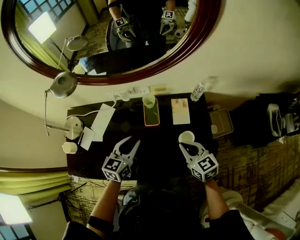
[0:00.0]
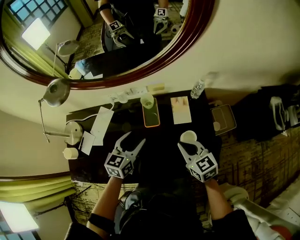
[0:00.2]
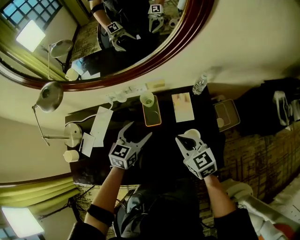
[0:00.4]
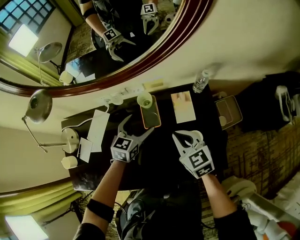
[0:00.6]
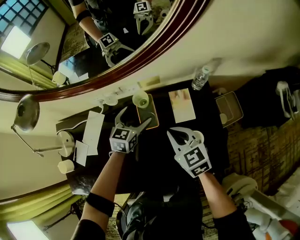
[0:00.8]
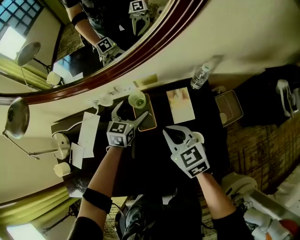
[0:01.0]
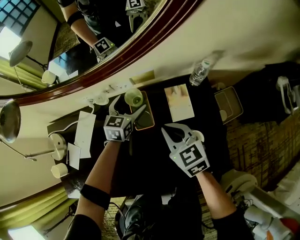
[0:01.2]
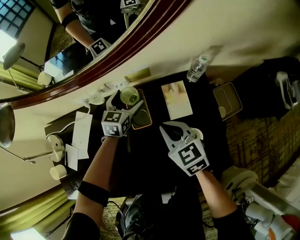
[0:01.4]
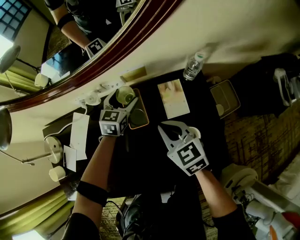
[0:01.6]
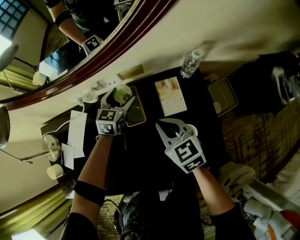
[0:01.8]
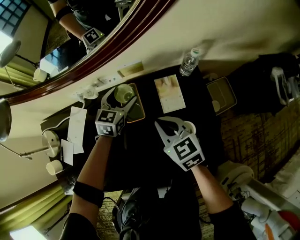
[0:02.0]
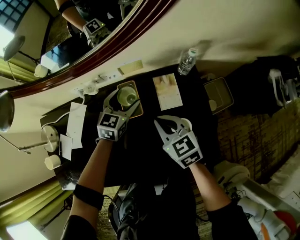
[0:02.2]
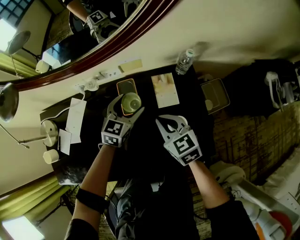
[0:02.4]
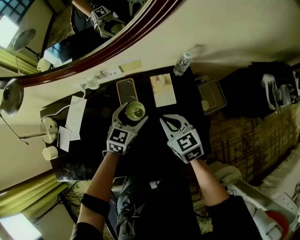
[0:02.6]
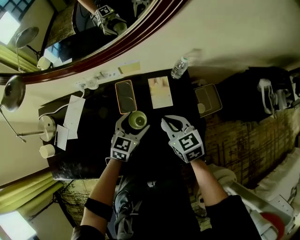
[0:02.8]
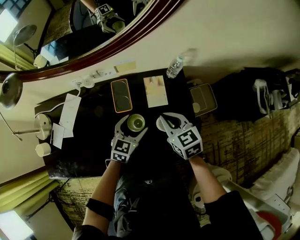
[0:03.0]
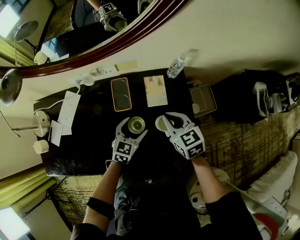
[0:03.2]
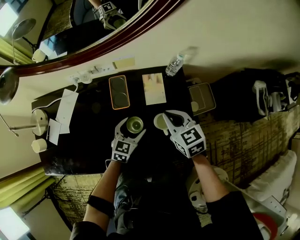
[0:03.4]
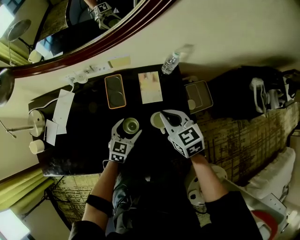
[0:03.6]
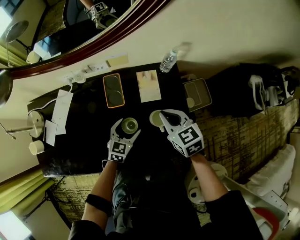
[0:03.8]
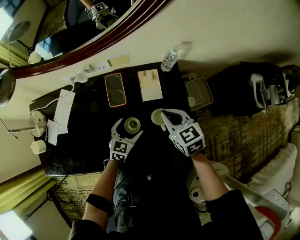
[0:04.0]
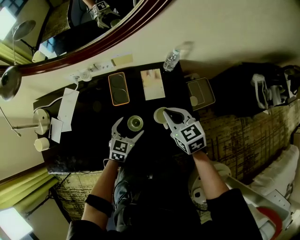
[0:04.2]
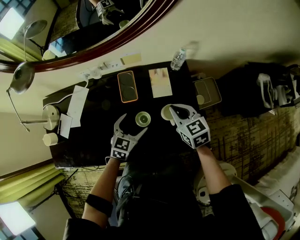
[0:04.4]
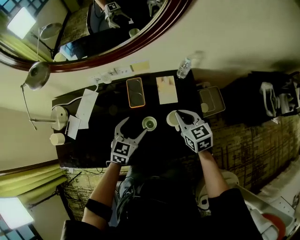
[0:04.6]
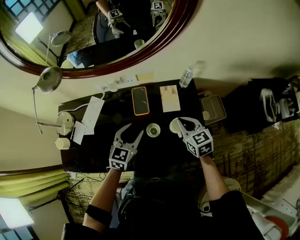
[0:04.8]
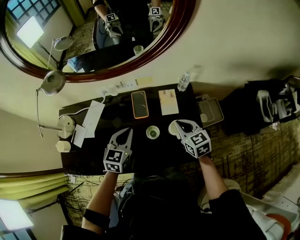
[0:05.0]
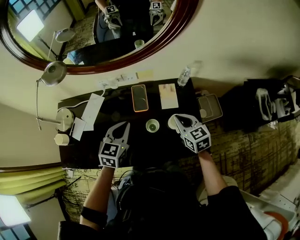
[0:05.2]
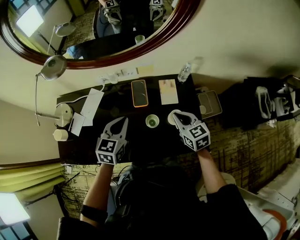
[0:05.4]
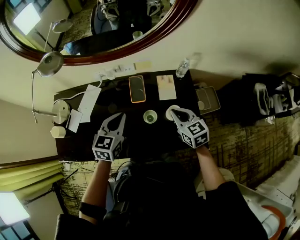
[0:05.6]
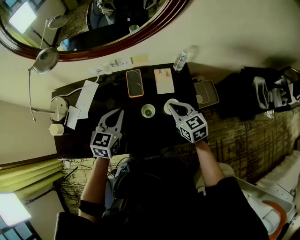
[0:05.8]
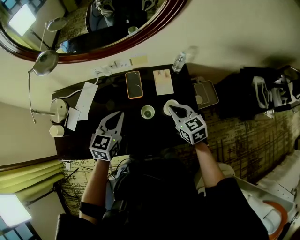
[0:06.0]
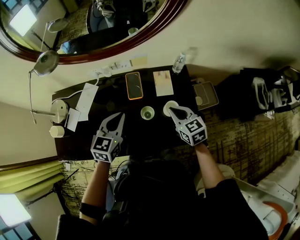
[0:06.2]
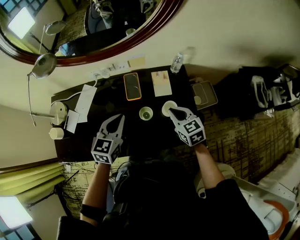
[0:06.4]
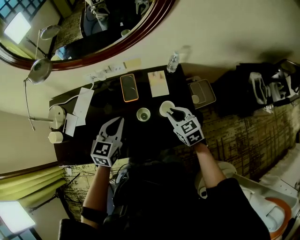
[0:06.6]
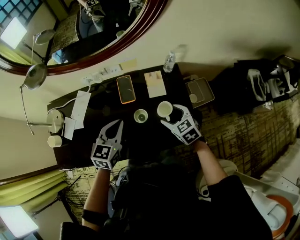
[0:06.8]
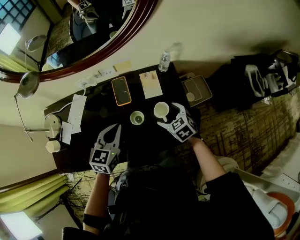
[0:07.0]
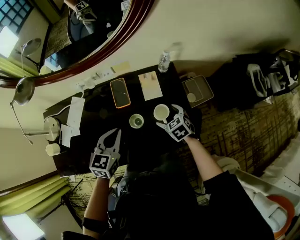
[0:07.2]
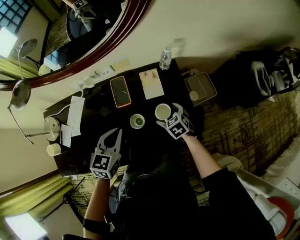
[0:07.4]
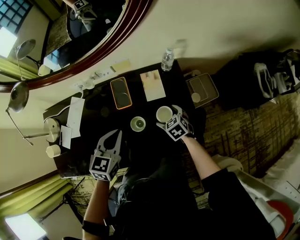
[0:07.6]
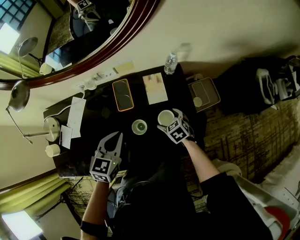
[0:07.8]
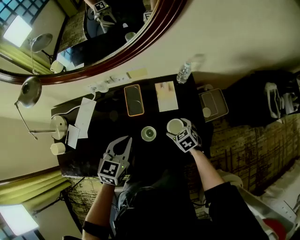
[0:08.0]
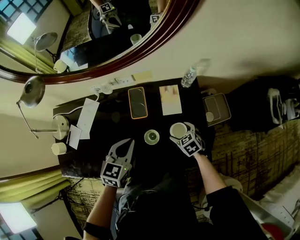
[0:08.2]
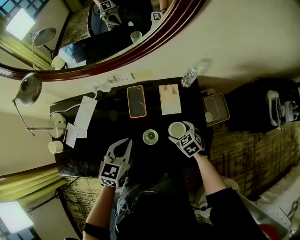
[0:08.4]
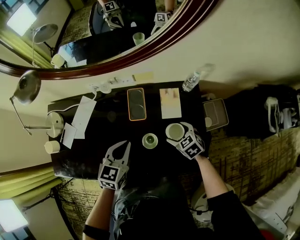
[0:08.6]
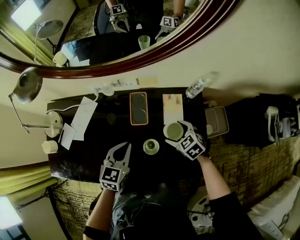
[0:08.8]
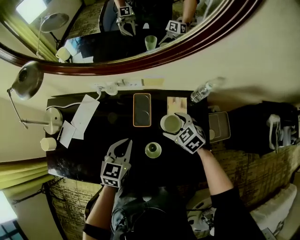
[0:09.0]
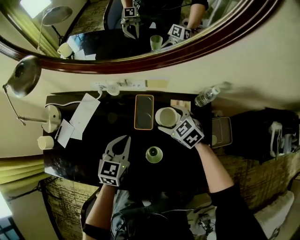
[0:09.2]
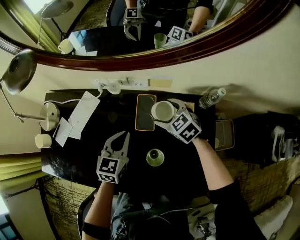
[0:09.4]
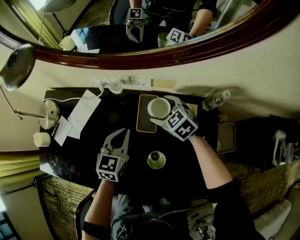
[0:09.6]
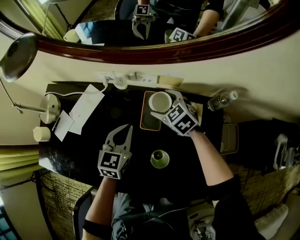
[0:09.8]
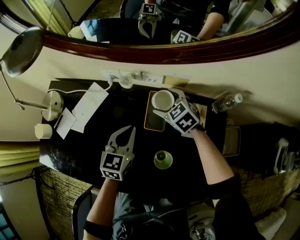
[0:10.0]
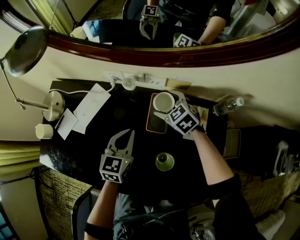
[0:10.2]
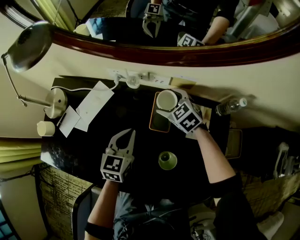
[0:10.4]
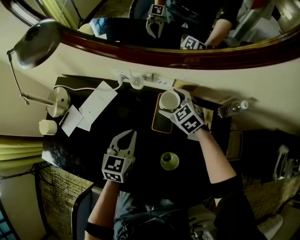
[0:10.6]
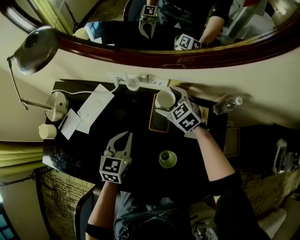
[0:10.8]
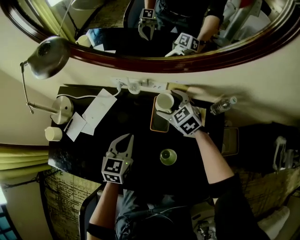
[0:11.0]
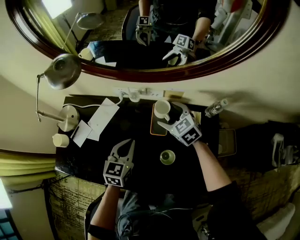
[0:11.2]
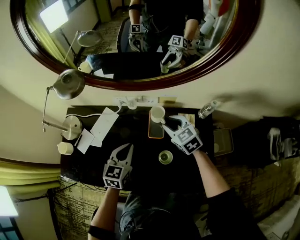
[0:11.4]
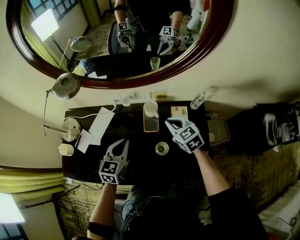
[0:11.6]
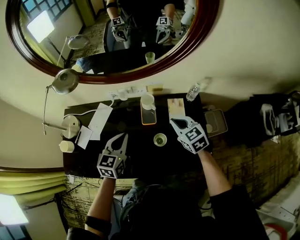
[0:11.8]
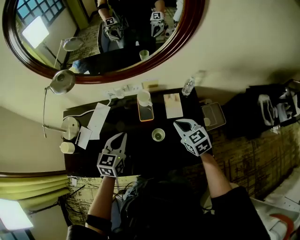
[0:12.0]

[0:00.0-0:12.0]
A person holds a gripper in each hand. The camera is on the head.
0:00.0 to 0:01.6: The right gripper shifts some 15 cm forward and downward, while the left gripper goes some 35 cm forward and downward, and opens its fingers.
0:01.6 to 0:03.0: The left gripper shifts about 25 cm backward and to the right, while the right gripper shifts some 10 cm to the right.
0:03.0 to 0:04.4: The left gripper shifts by approximately 5 cm.
0:04.4 to 0:06.0: The left gripper is displaced upward and to the left by roughly 20 cm, and closes its fingers. The right gripper changes place by roughly 5 cm.
0:06.0 to 0:07.6: The left gripper goes some 5 cm to the right; the right gripper is displaced downward by approximately 20 cm, swivels some 20 degrees, and opens up.
0:07.6 to 0:09.0: The right gripper travels forward, to the left and upward by some 15 cm, and changes its angle by roughly 30 degrees; the left gripper is displaced downward and forward by roughly 10 cm.
0:09.0 to 0:10.4: The left gripper moves forward, approximately 5 cm, while the right gripper goes roughly 20 cm forward and to the left.
0:10.4 to 0:12.0: The left gripper moves upward and backward, about 20 cm. Meanwhile the right gripper goes roughly 30 cm backward and upward, rotates roughly 30 degrees, and closes its fingers.

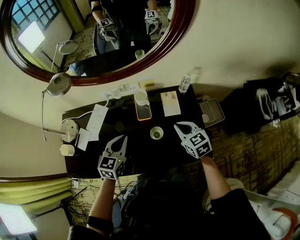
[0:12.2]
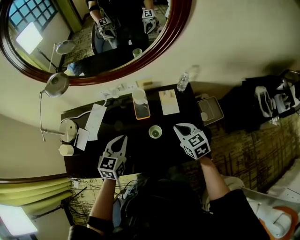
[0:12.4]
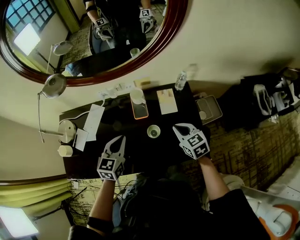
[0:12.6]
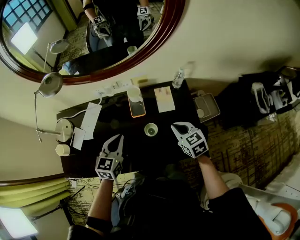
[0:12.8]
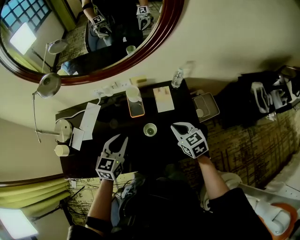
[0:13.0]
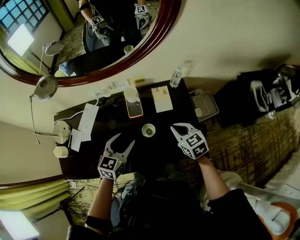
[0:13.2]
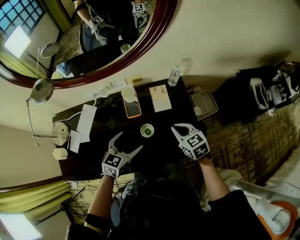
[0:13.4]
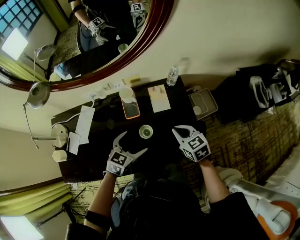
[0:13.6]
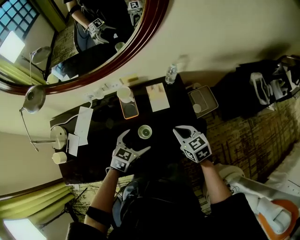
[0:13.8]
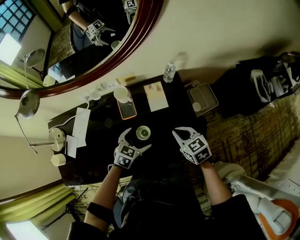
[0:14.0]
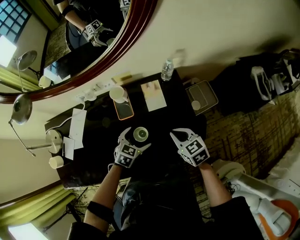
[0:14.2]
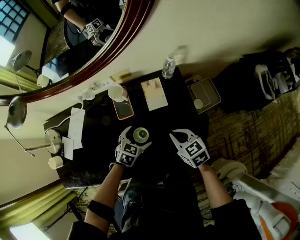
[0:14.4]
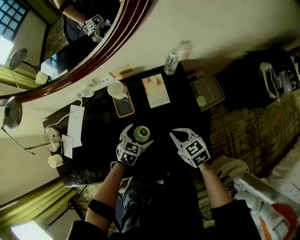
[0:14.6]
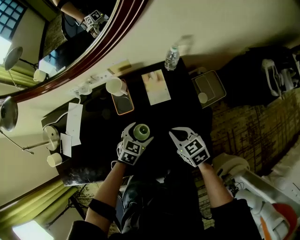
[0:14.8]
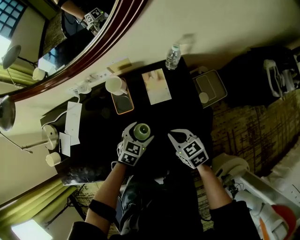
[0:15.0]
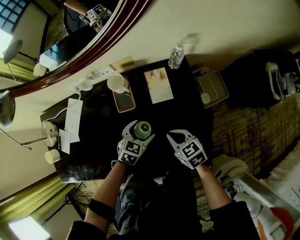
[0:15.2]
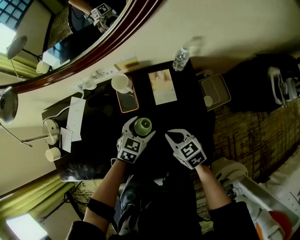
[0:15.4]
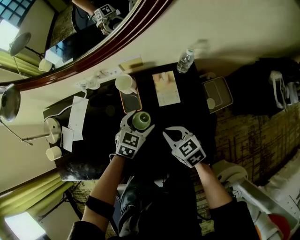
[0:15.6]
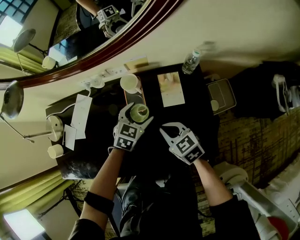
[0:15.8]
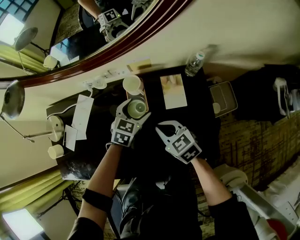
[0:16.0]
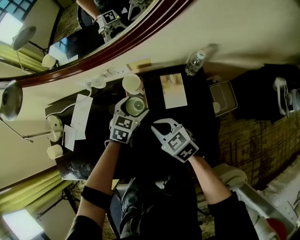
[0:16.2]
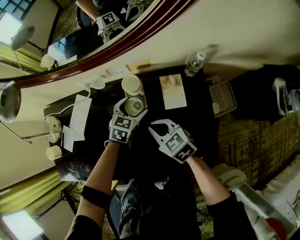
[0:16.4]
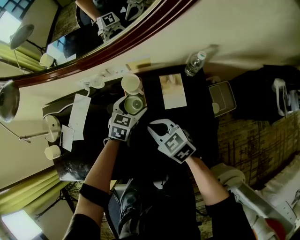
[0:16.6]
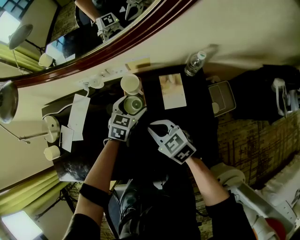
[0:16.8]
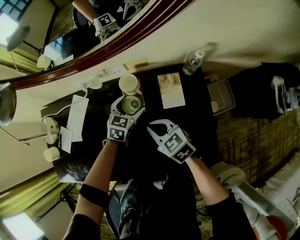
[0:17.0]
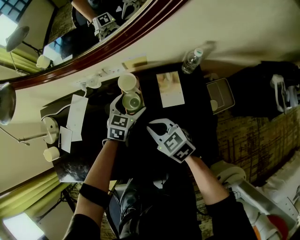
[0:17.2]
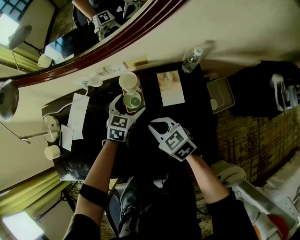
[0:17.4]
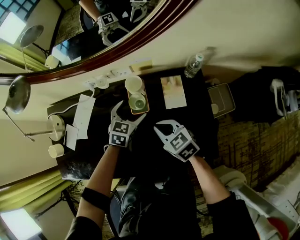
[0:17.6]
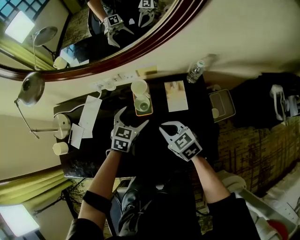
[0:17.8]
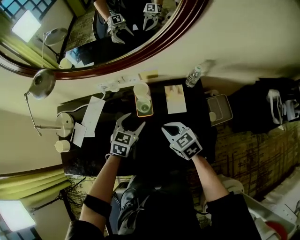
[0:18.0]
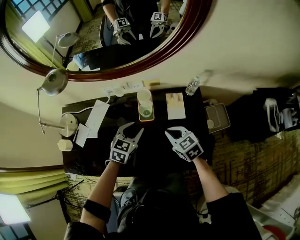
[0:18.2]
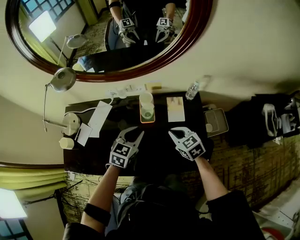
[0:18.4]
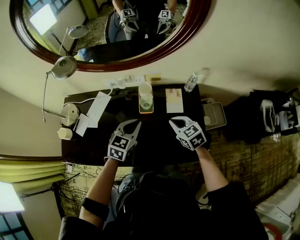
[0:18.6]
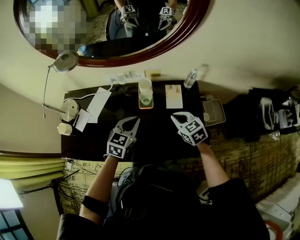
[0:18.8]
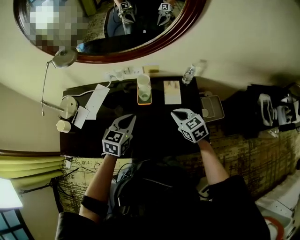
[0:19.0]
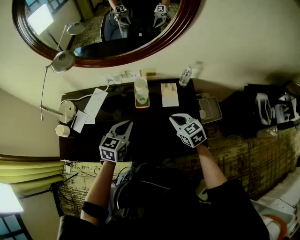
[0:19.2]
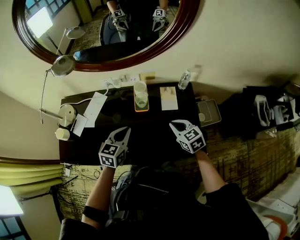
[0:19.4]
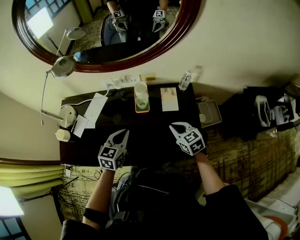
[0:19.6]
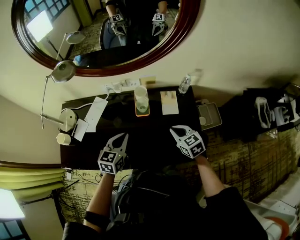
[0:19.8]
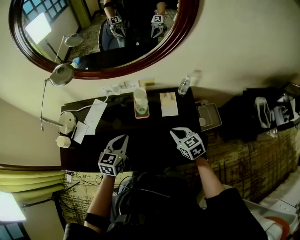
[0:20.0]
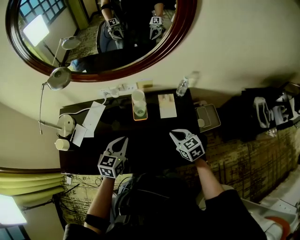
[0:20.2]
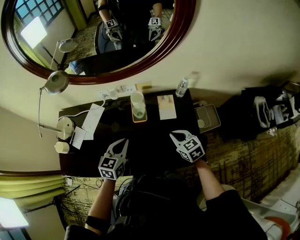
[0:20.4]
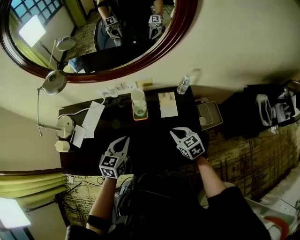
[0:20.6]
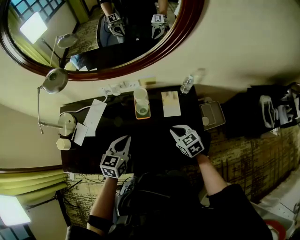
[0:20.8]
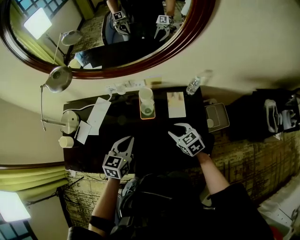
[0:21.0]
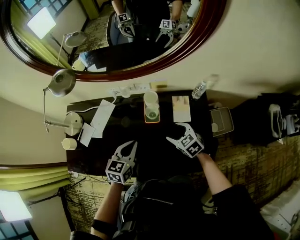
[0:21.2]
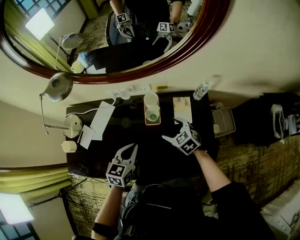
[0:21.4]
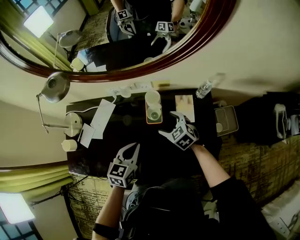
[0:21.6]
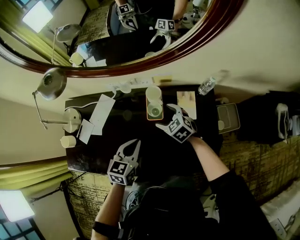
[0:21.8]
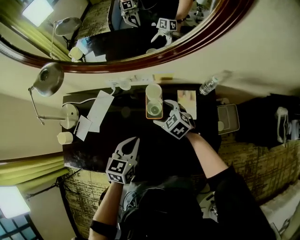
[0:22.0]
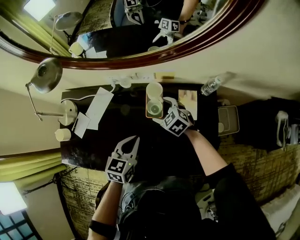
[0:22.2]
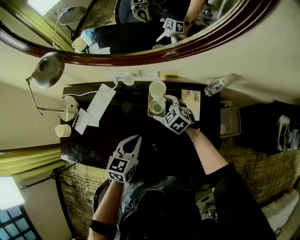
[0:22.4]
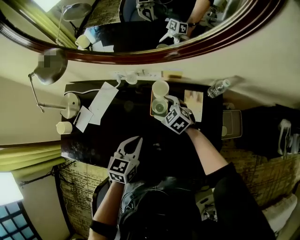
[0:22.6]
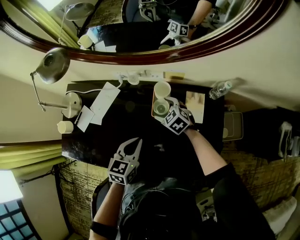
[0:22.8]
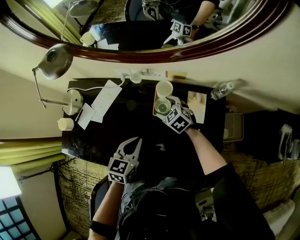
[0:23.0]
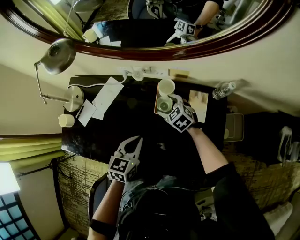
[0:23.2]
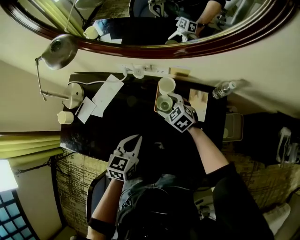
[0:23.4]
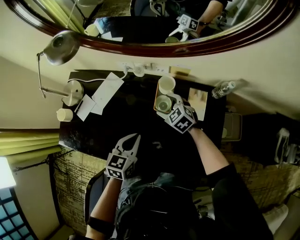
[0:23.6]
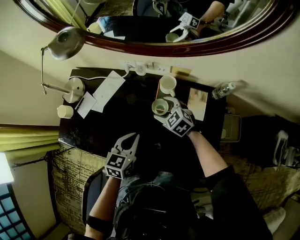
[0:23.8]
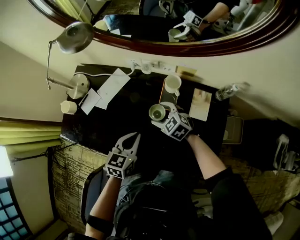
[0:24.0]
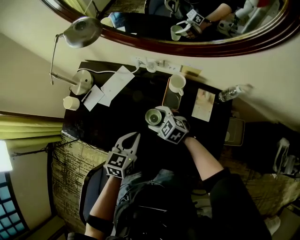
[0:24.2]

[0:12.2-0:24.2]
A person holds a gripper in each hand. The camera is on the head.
0:12.2 to 0:13.8: The right gripper travels to the right and downward by some 5 cm. The left gripper travels to the right and downward by roughly 15 cm, changes its angle by about 30 degrees, and opens.
0:13.8 to 0:15.2: The grippers both shift downward by approximately 10 cm.
0:15.2 to 0:16.6: The right gripper moves to the left and forward, about 15 cm. Meanwhile the left gripper heads forward, covering some 15 cm.
0:16.6 to 0:18.2: The right gripper heads to the right, covering approximately 5 cm. The left gripper heads upward, backward and to the left, covering some 15 cm, and closes.
0:18.2 to 0:19.8: The right gripper heads backward, covering approximately 5 cm, while the left gripper goes some 10 cm backward and to the left.
0:19.8 to 0:21.2: The right gripper moves forward and downward, approximately 10 cm, and opens up.
0:21.2 to 0:22.6: The right gripper is displaced forward, to the left and downward by some 15 cm.
0:22.6 to 0:24.2: The right gripper shifts about 15 cm to the left and backward, and changes its angle by about 20 degrees, while the left gripper shifts about 5 cm to the left.
